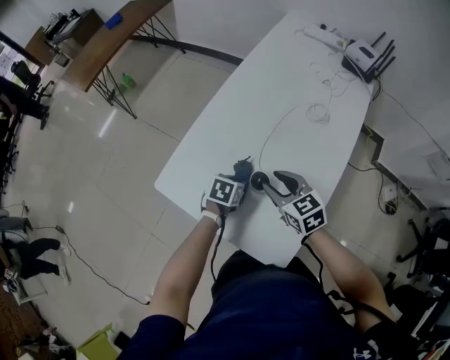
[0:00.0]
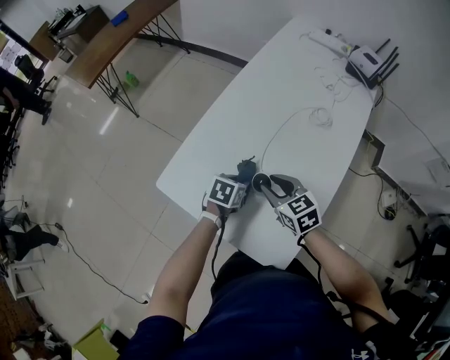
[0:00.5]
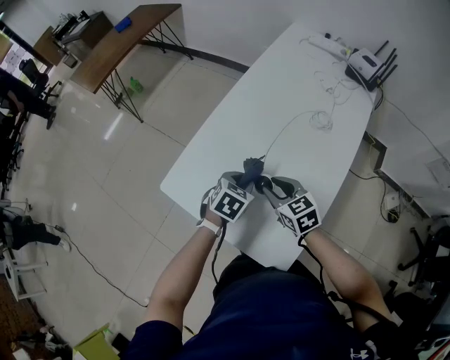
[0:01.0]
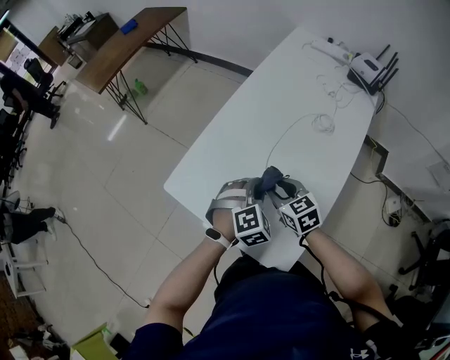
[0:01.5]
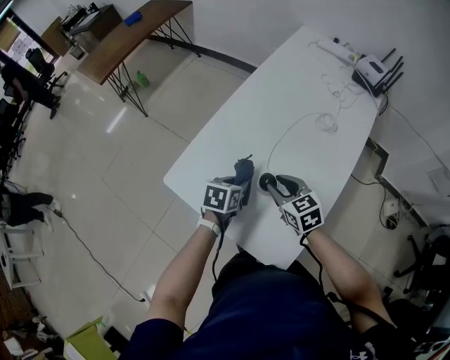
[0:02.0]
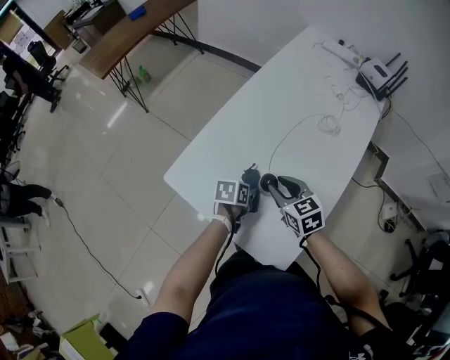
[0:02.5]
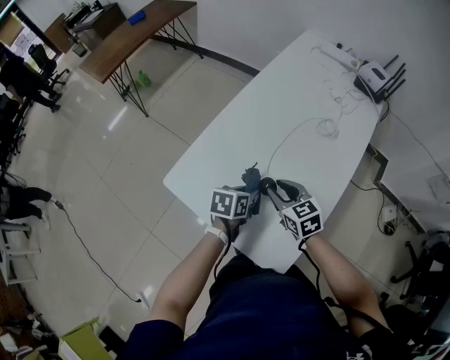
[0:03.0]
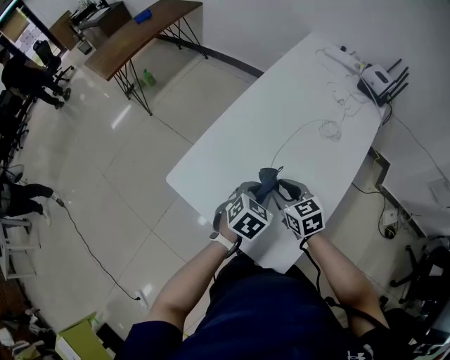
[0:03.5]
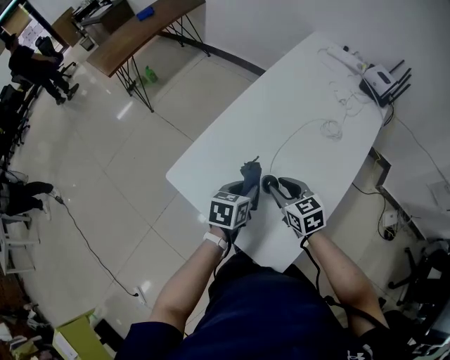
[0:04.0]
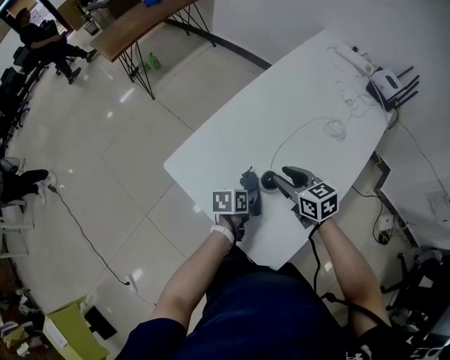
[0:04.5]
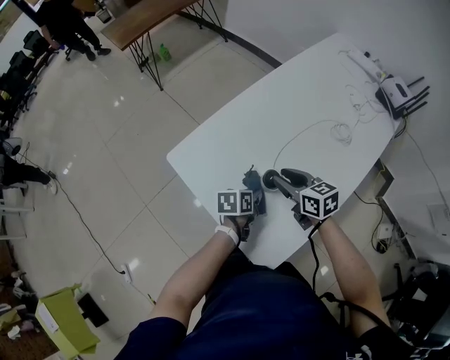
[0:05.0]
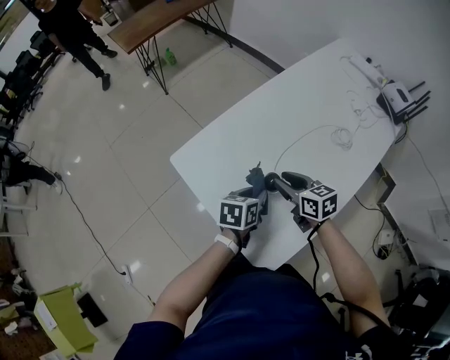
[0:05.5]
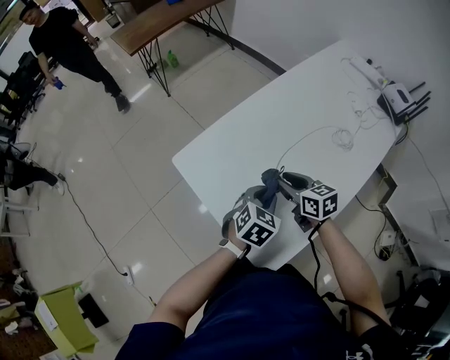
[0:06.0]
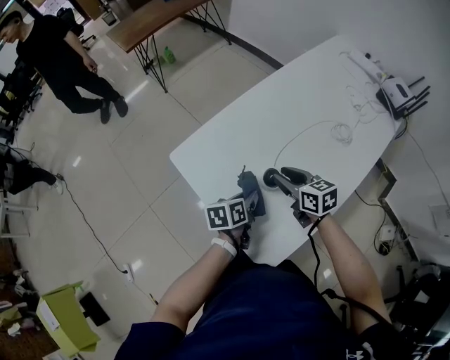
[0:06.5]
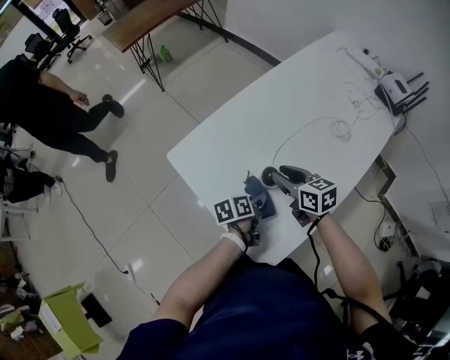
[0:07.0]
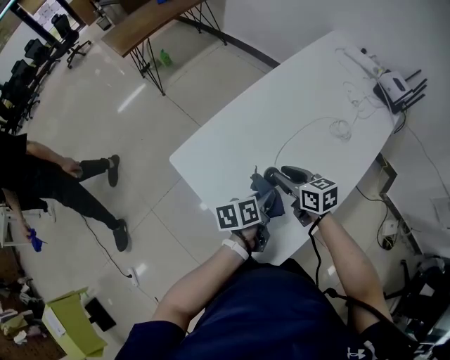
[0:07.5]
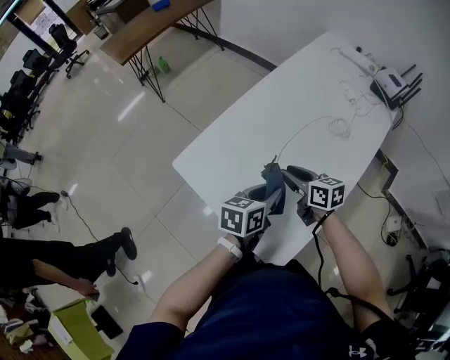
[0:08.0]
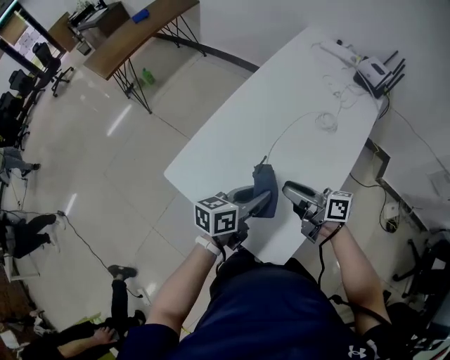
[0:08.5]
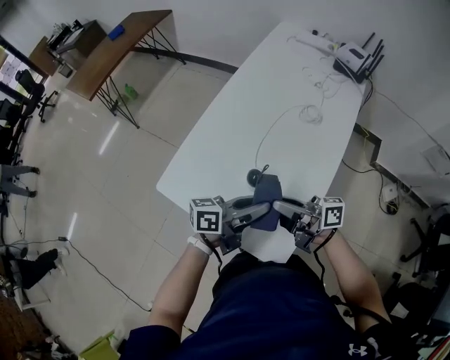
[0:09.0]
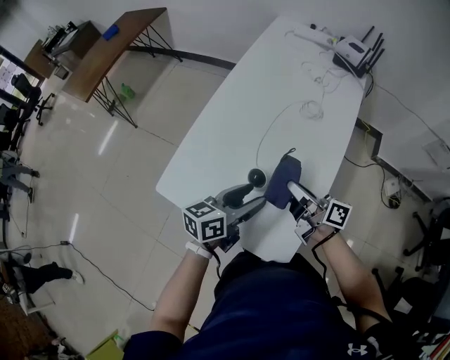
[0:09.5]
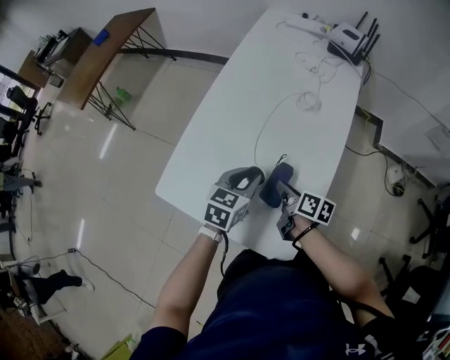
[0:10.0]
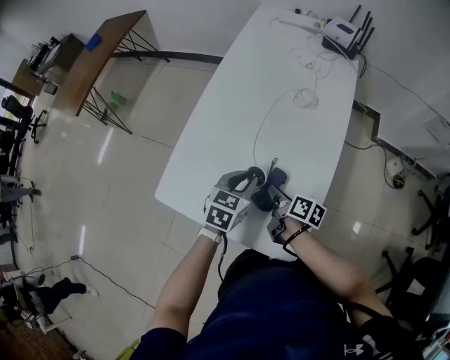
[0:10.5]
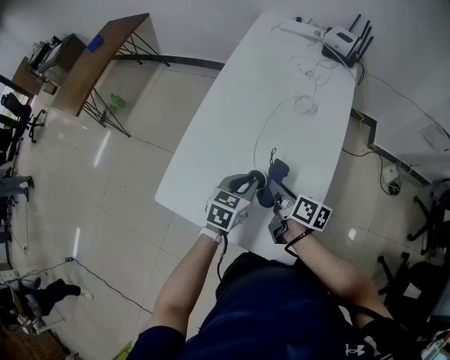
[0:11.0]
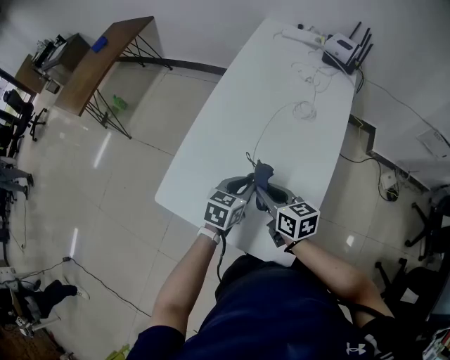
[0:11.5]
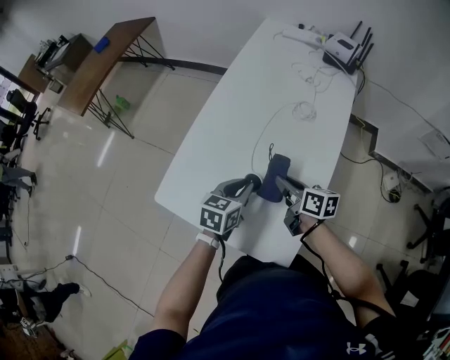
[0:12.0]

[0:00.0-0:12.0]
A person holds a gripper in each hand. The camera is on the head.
0:00.0 to 0:02.0: The left gripper heads upward, covering some 5 cm.
0:02.0 to 0:04.0: The left gripper is displaced upward by approximately 5 cm.
0:04.0 to 0:06.0: The left gripper goes downward and returns, roughly 10 cm each way, and swivels approximately 30 degrees.
0:06.0 to 0:08.0: The left gripper travels downward and back again, about 10 cm each way, and rotates approximately 40 degrees.
0:08.0 to 0:10.0: The right gripper changes place by roughly 10 cm, and changes its angle by approximately 50 degrees, while the left gripper rotates about 30 degrees, and opens, then closes once more.
0:10.0 to 0:12.0: The right gripper moves upward, some 5 cm.

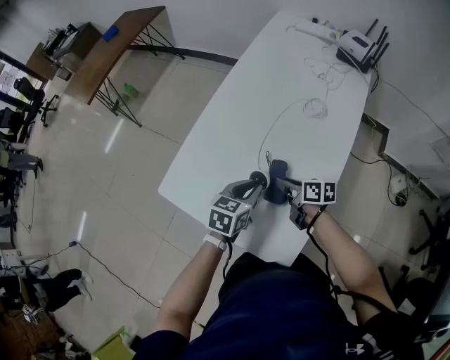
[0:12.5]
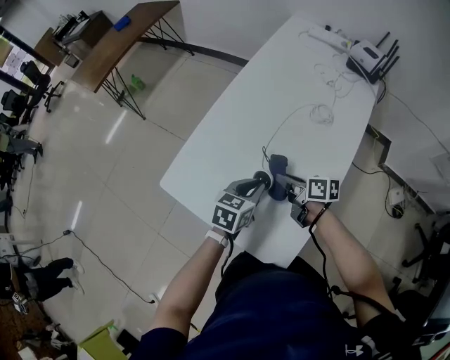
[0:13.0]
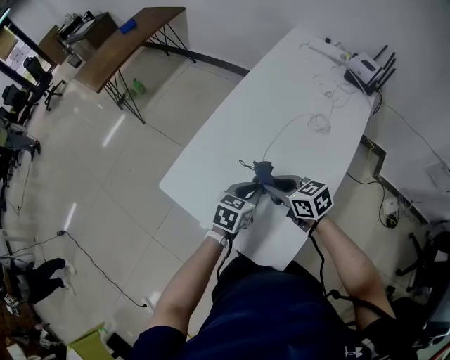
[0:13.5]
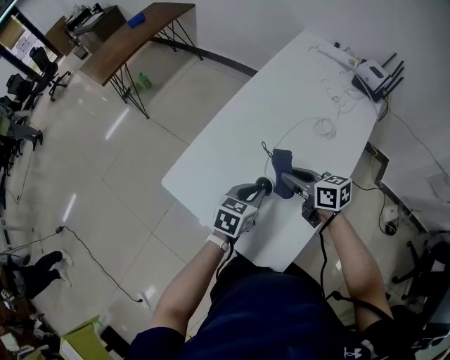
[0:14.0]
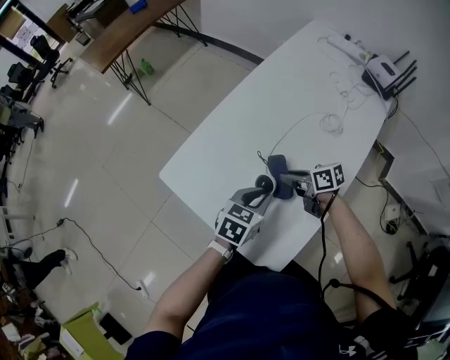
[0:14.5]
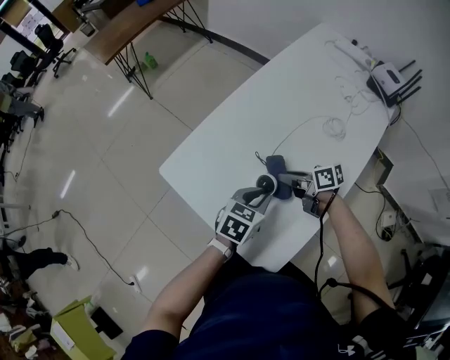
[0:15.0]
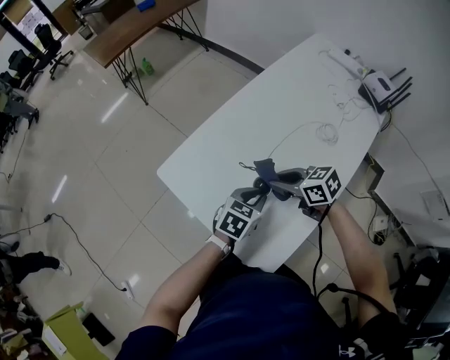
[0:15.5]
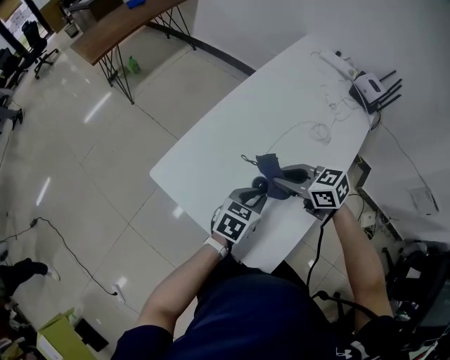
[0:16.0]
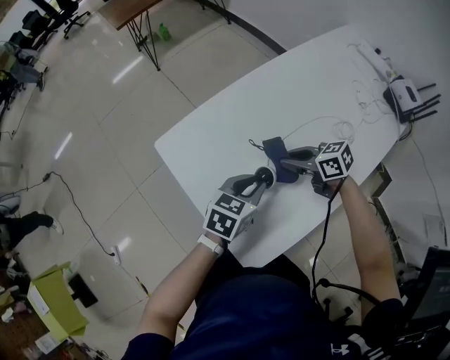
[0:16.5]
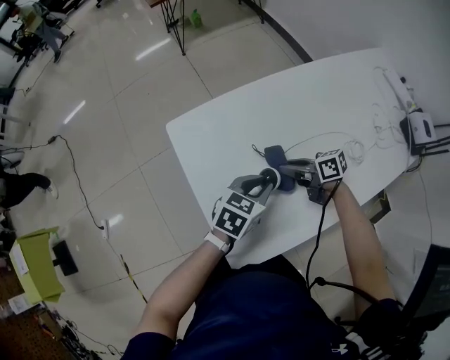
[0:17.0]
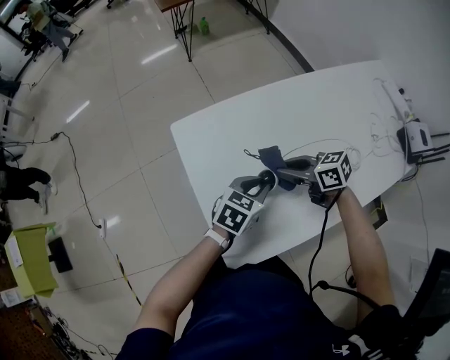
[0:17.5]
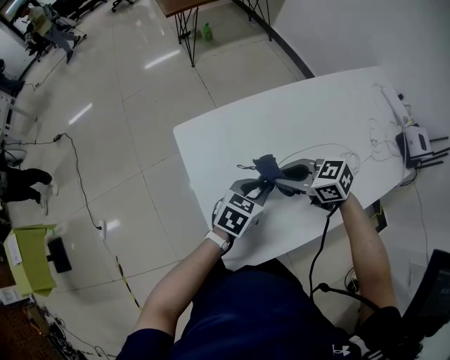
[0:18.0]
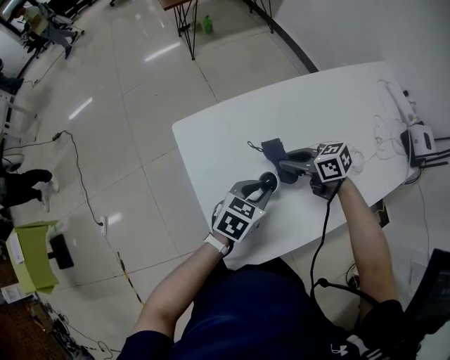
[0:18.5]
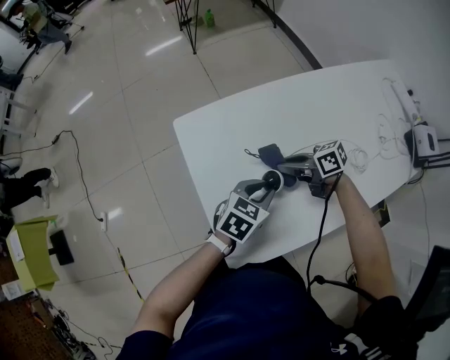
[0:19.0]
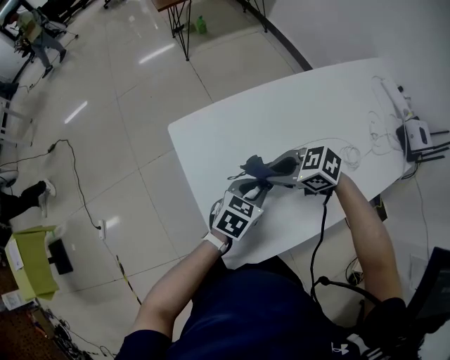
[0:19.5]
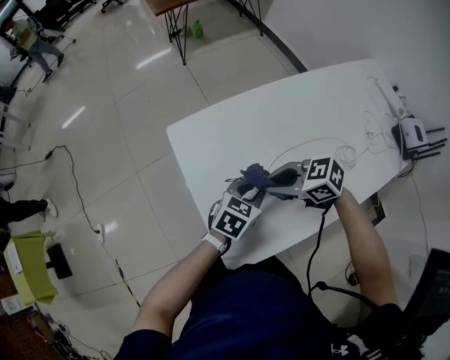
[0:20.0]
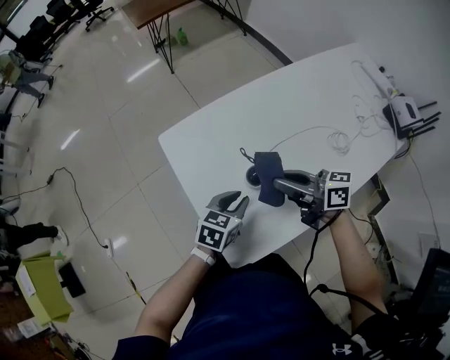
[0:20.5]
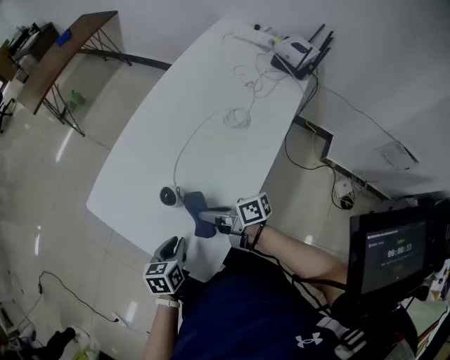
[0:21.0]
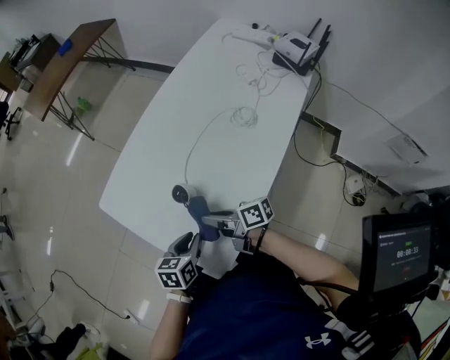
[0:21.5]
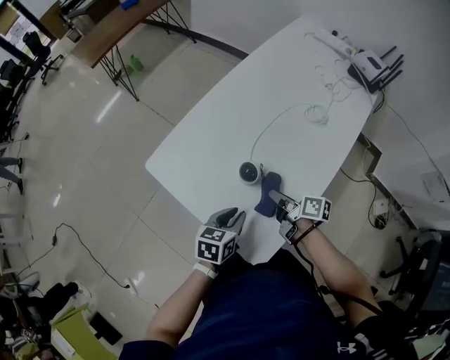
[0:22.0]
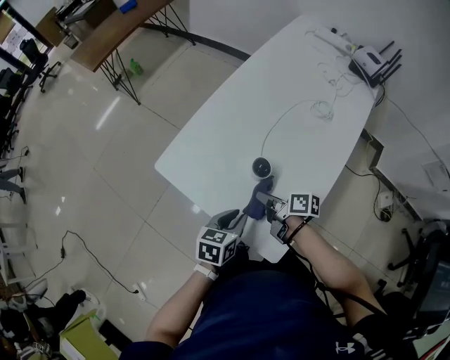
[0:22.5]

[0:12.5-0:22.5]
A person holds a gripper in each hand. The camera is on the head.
0:12.5 to 0:14.5: The right gripper moves roughly 10 cm upward and comes back, and turns by some 30 degrees.
0:14.5 to 0:16.5: The right gripper moves roughly 10 cm upward and comes back, and swivels some 30 degrees.
0:16.5 to 0:18.5: The right gripper swings up and down, roughly 10 cm each way, with 2 reversals.
0:18.5 to 0:20.5: The right gripper shifts roughly 10 cm upward, and swivels roughly 30 degrees. Meanwhile the left gripper ends up approximately 5 cm from where it was.
0:20.5 to 0:22.5: The right gripper heads downward, covering approximately 15 cm, and changes its angle by roughly 50 degrees, while the left gripper ends up roughly 10 cm from where it was.

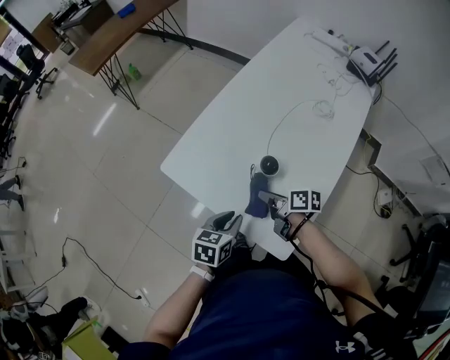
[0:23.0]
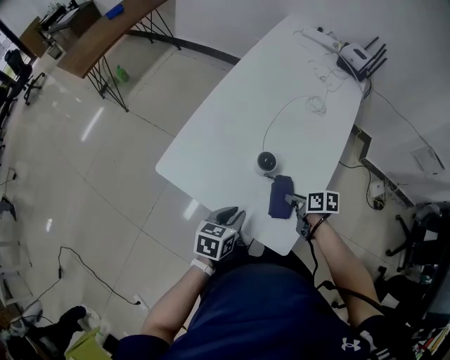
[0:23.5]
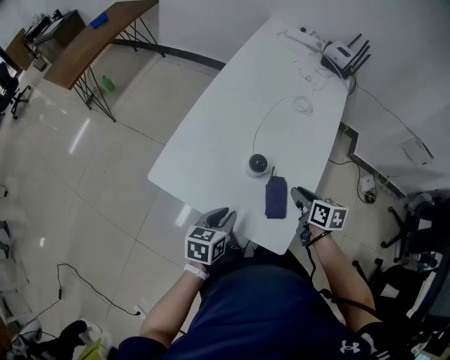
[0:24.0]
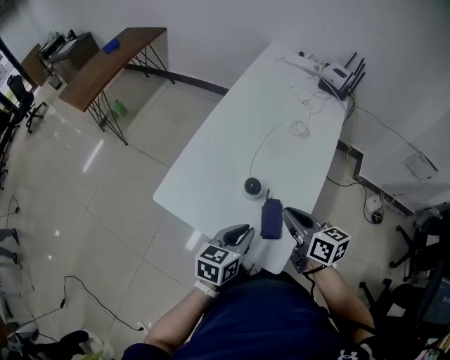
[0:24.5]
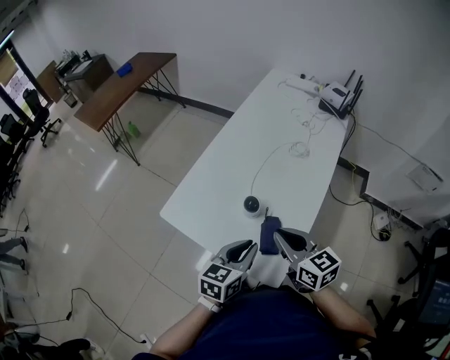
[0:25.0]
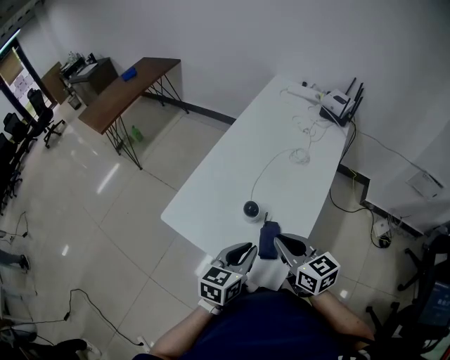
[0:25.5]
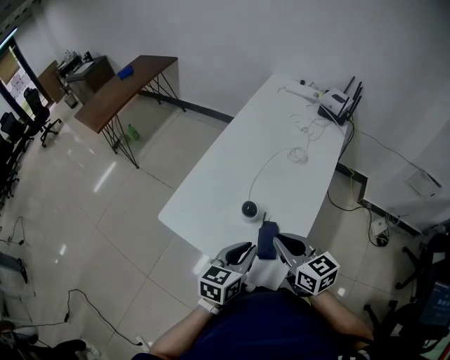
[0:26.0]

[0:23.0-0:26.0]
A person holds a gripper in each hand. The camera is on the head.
0:23.0 to 0:24.5: The right gripper travels upward and to the right by approximately 20 cm, and changes its angle by about 40 degrees. The left gripper is displaced upward and to the right by approximately 10 cm.
0:24.5 to 0:26.0: The grippers stay close to where they were, moving slightly.

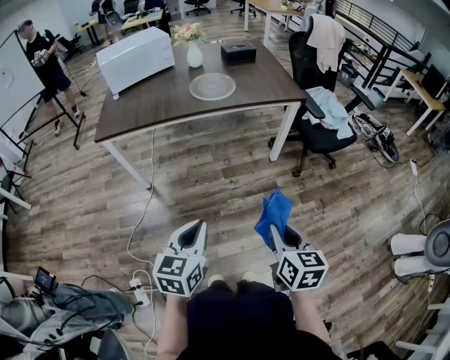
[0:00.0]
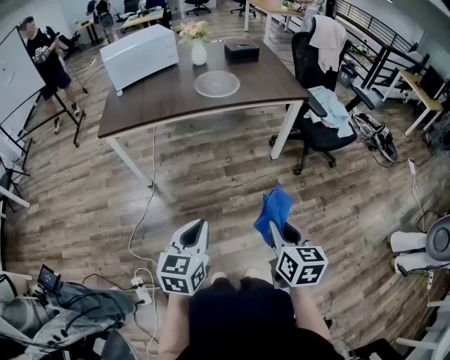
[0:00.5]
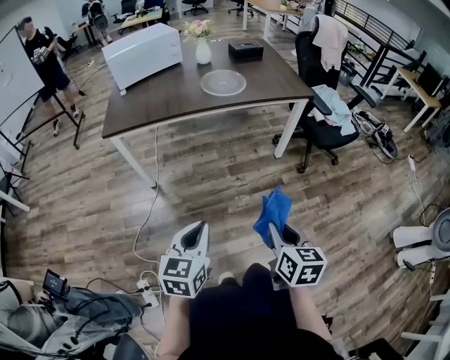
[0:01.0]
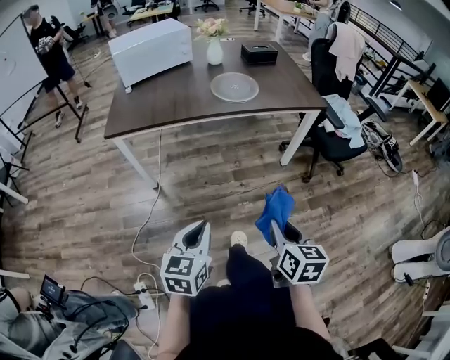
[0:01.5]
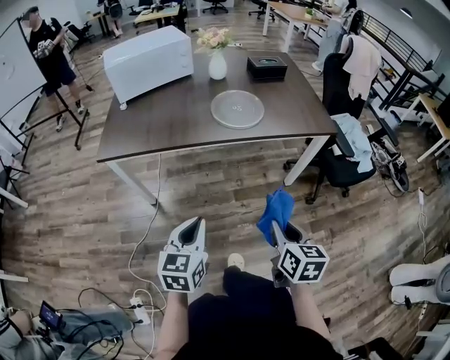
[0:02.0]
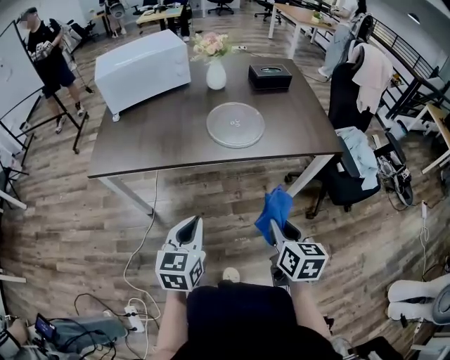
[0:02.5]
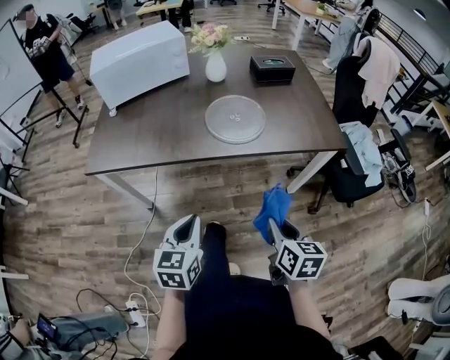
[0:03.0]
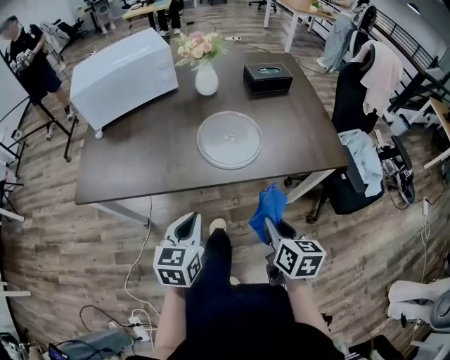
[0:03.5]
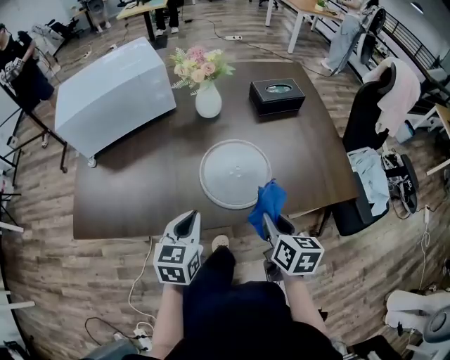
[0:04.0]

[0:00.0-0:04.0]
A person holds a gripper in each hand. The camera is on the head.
0:00.0 to 0:02.0: Both grippers travel together forward and to the left, some 25 cm.
0:02.0 to 0:04.0: The pair of grippers is taken forward, roughly 40 cm.
